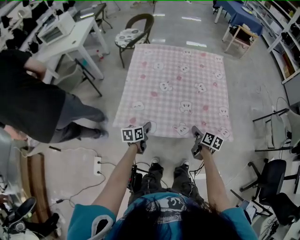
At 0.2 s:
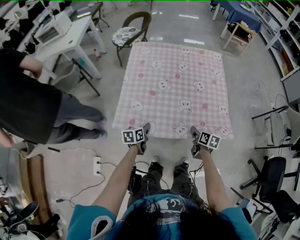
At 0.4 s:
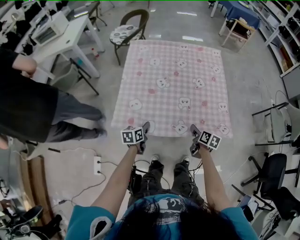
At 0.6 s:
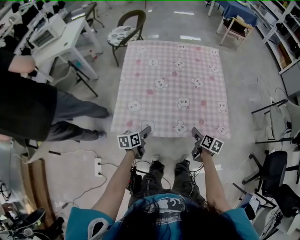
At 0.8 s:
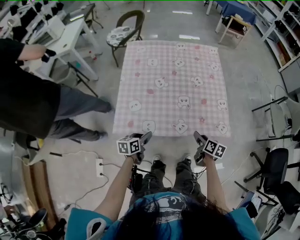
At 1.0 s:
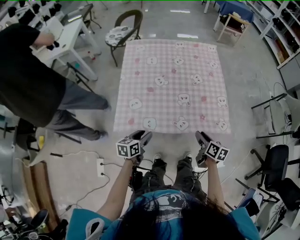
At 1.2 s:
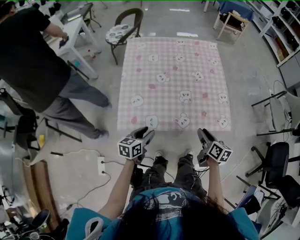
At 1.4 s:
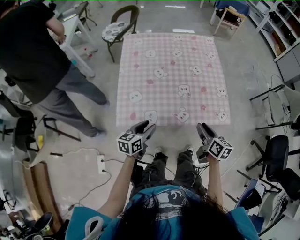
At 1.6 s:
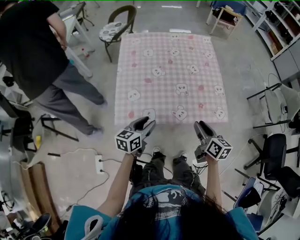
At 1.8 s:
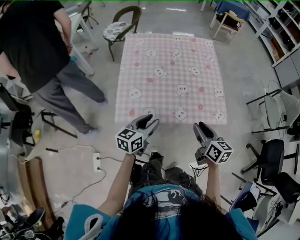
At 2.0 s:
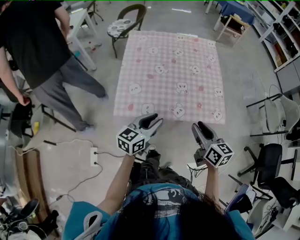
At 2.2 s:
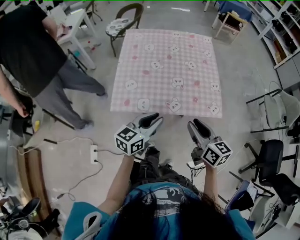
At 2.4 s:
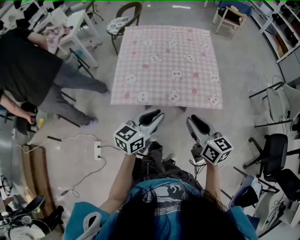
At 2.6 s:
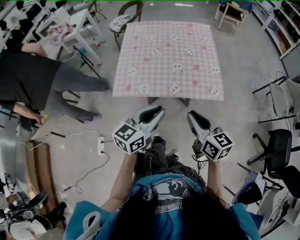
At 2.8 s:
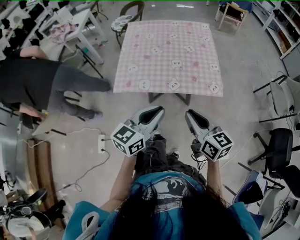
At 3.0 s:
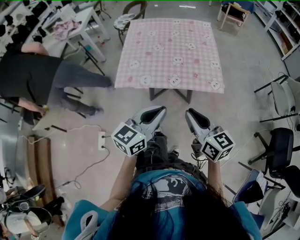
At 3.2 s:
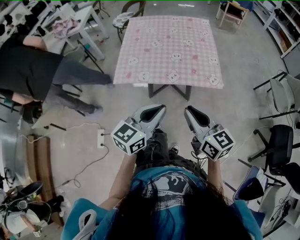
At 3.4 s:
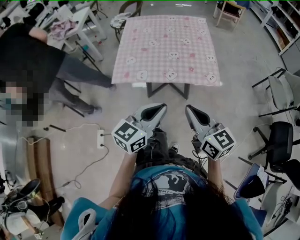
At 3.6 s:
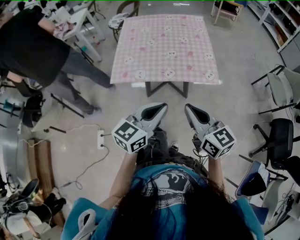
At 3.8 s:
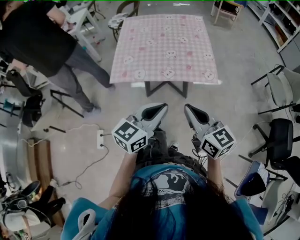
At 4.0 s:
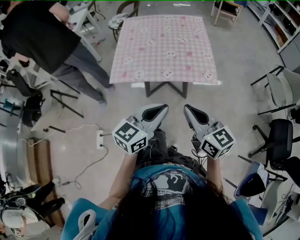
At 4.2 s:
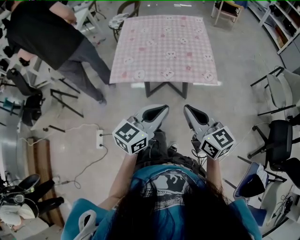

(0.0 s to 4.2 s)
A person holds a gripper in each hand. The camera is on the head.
0.0 s - 1.4 s: The two grippers go about 10 cm upward and backward. The left gripper turns by some 20 degrees, and opens its fingers.
1.4 s - 2.8 s: The left gripper heads upward, backward and to the right, covering approximately 30 cm, changes its angle by about 20 degrees, and closes; the right gripper is displaced backward and upward by approximately 20 cm, swivels about 30 degrees, and closes.
2.8 s - 4.2 s: The right gripper goes some 5 cm backward; the left gripper moves backward and to the right, roughly 10 cm.

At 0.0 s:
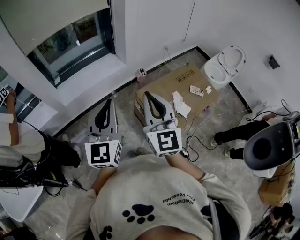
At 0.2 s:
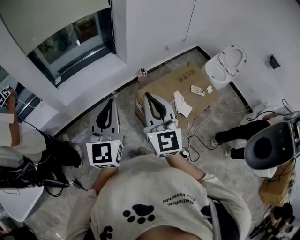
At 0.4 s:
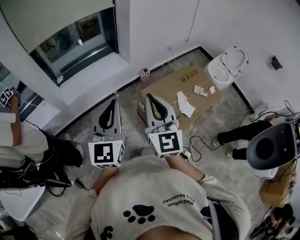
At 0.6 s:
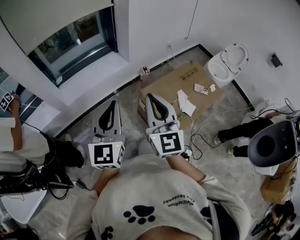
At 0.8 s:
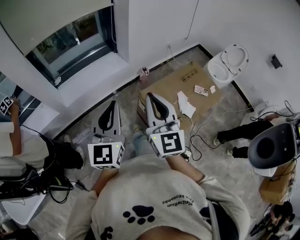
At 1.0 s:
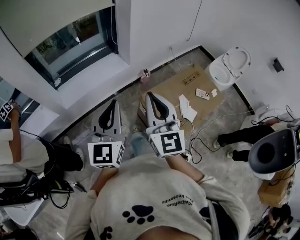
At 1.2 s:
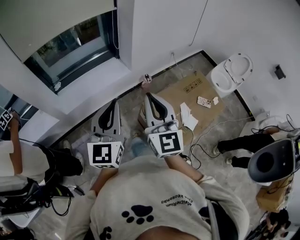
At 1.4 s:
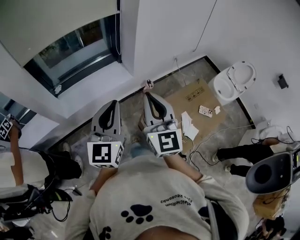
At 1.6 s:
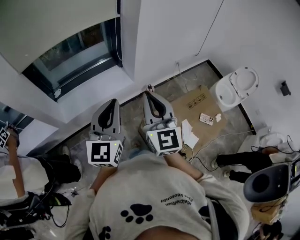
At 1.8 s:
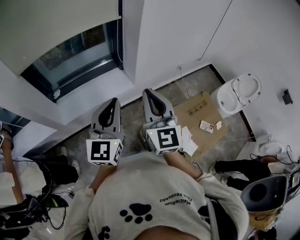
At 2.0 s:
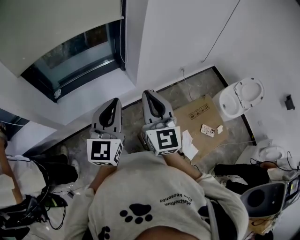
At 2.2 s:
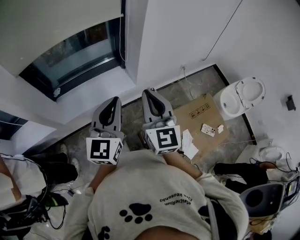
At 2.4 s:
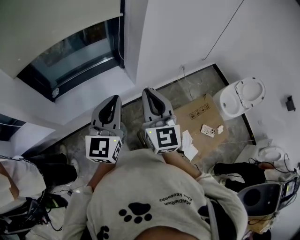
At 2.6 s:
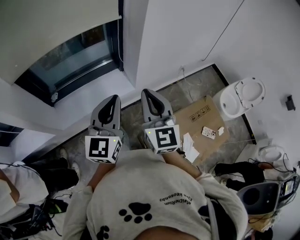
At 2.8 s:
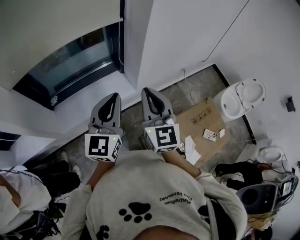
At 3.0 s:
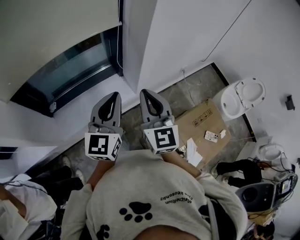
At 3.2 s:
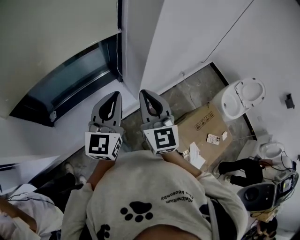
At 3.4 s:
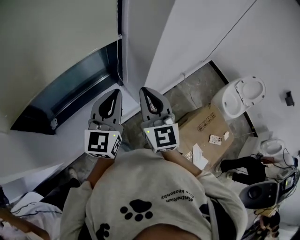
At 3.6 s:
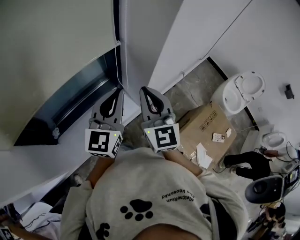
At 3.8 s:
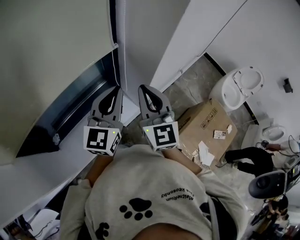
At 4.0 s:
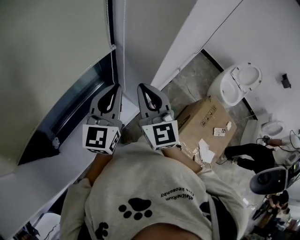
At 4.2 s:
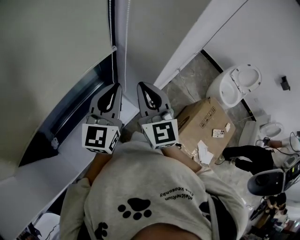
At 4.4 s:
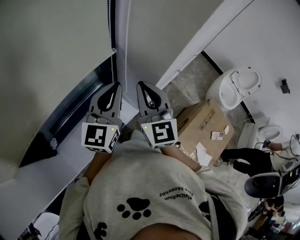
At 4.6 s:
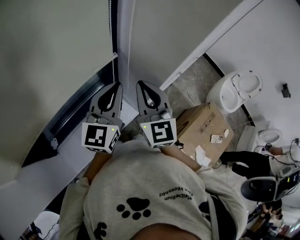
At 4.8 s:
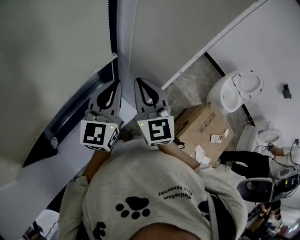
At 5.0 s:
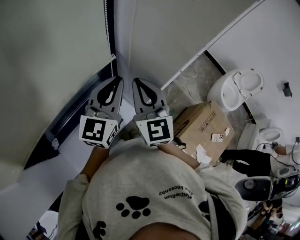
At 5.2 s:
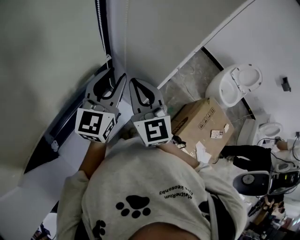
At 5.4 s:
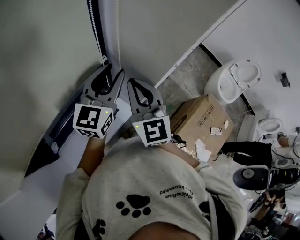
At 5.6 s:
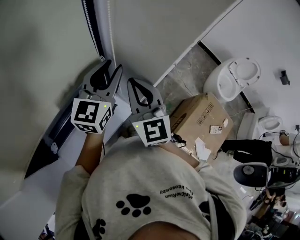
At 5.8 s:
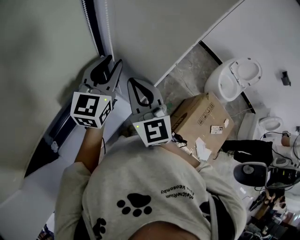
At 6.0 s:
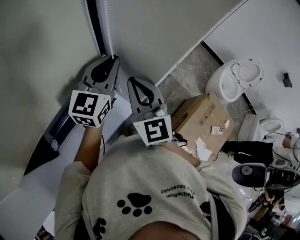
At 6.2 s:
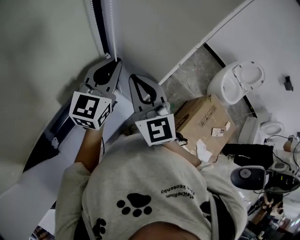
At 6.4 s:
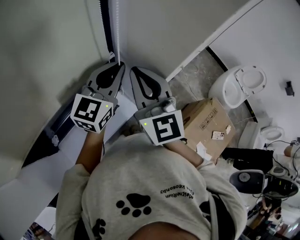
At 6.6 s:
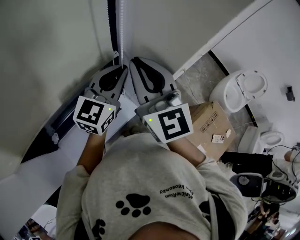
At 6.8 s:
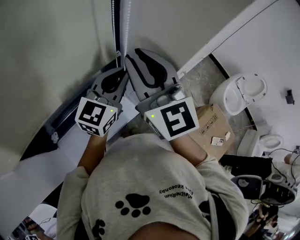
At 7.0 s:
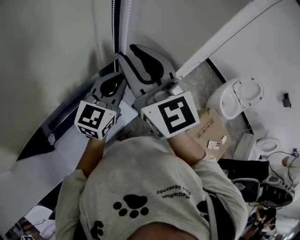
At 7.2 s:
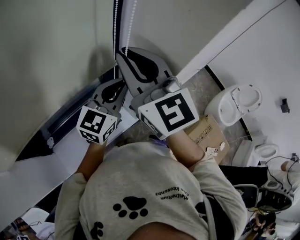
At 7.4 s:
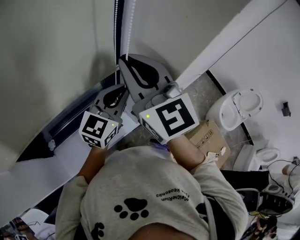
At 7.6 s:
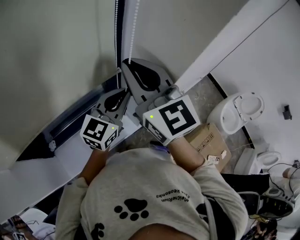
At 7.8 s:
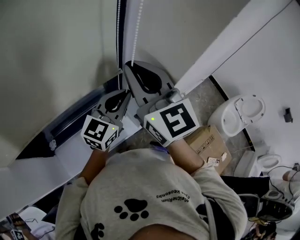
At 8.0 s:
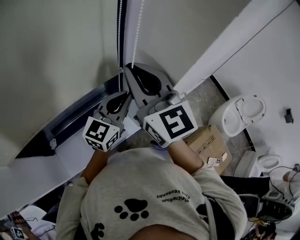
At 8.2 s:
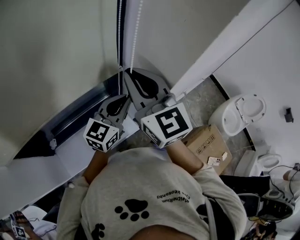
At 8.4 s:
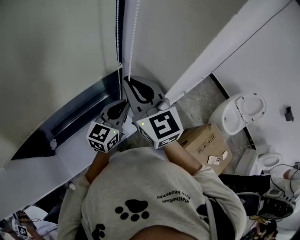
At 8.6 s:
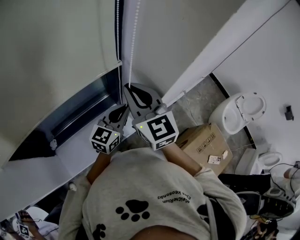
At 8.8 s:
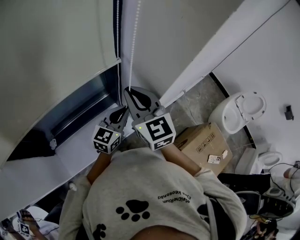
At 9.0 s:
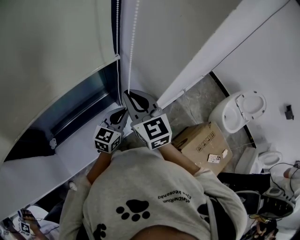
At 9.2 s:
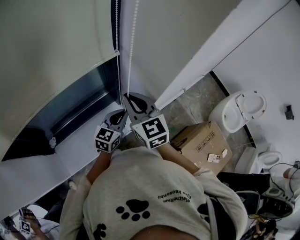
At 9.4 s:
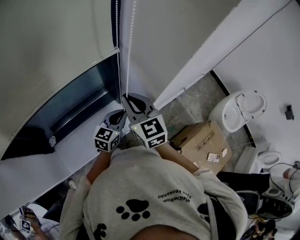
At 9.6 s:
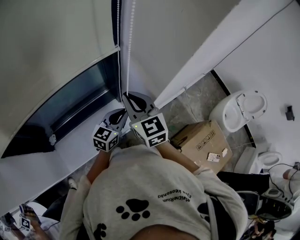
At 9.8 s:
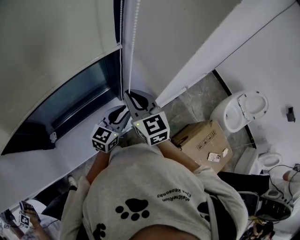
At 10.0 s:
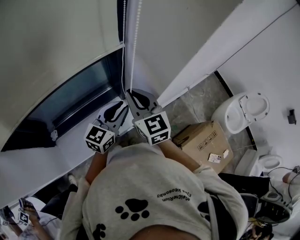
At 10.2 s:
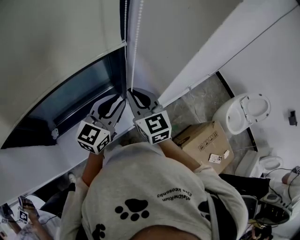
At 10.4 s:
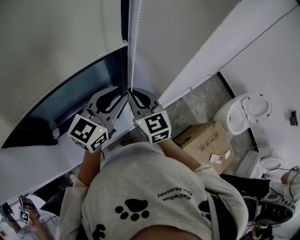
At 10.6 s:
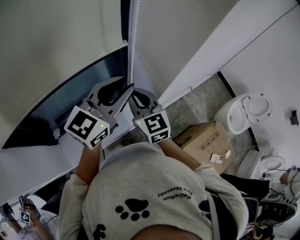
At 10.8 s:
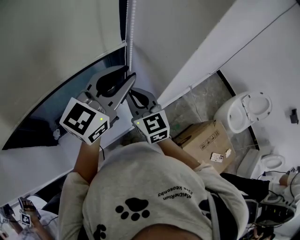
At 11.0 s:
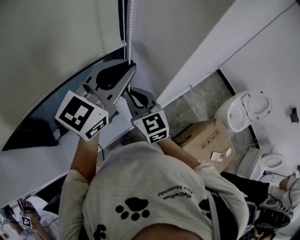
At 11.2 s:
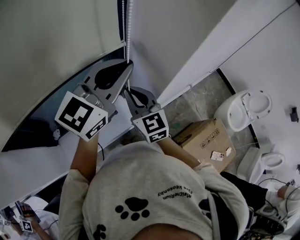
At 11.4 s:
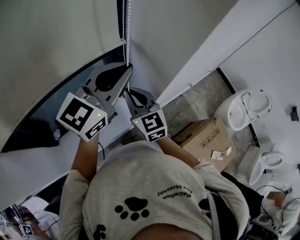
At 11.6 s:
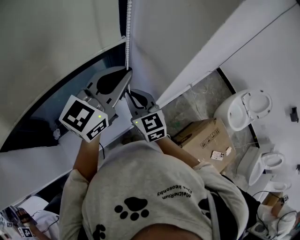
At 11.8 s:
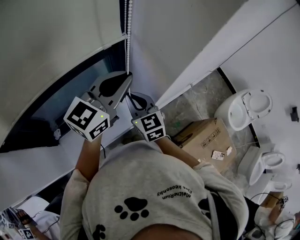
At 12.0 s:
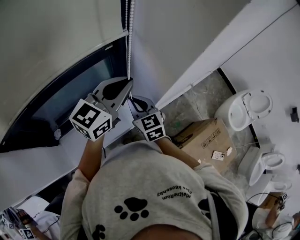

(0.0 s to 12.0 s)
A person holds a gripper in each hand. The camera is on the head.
0.0 s - 1.6 s: The grippers both shift forward by approximately 25 cm.
1.6 s - 3.0 s: The two grippers go approximately 20 cm forward.
3.0 s - 4.4 s: Both grippers move forward, roughly 25 cm.
4.4 s - 6.0 s: The left gripper moves forward, about 10 cm, and opens, then closes again.
6.0 s - 7.6 s: The right gripper travels upward by some 15 cm, swivels about 20 degrees, and opens and closes again, while the left gripper is displaced backward by roughly 5 cm.
7.6 s - 9.0 s: The grippers both shift downward by roughly 15 cm.
9.0 s - 10.4 s: The left gripper shifts roughly 15 cm upward, and opens its fingers.
10.4 s - 12.0 s: The right gripper goes approximately 10 cm downward, while the left gripper moves approximately 10 cm upward and comes back, and closes up.

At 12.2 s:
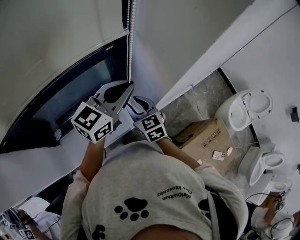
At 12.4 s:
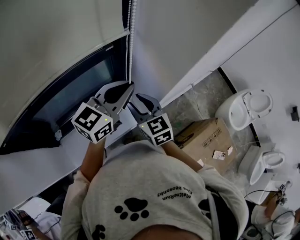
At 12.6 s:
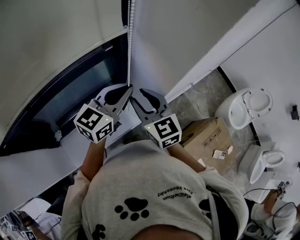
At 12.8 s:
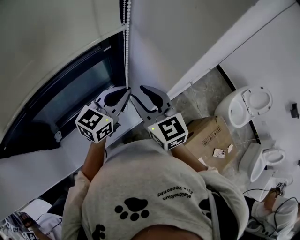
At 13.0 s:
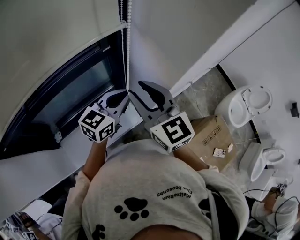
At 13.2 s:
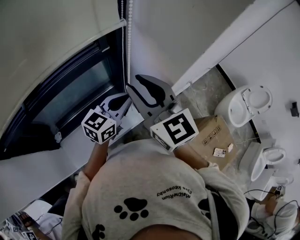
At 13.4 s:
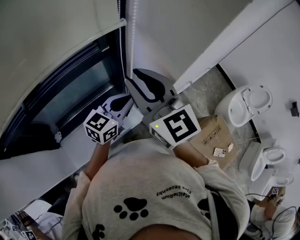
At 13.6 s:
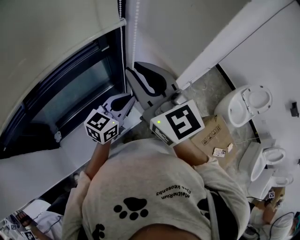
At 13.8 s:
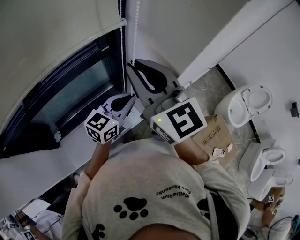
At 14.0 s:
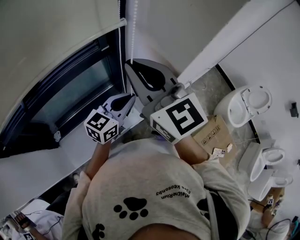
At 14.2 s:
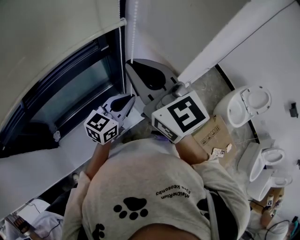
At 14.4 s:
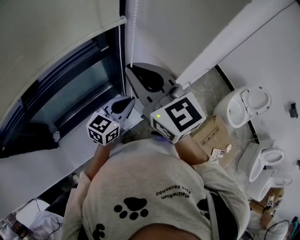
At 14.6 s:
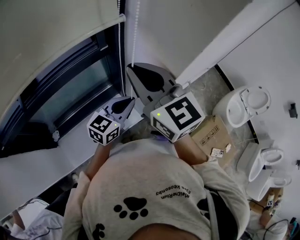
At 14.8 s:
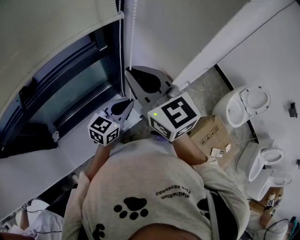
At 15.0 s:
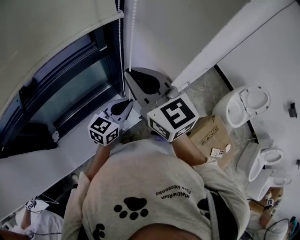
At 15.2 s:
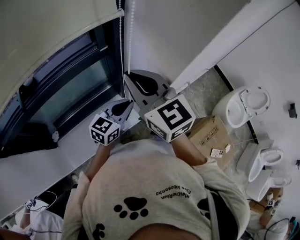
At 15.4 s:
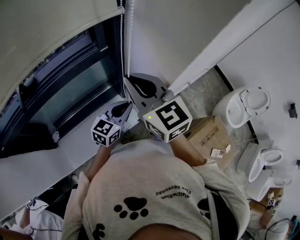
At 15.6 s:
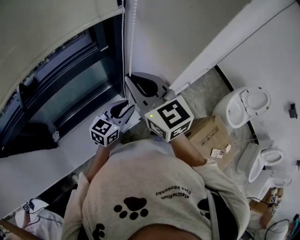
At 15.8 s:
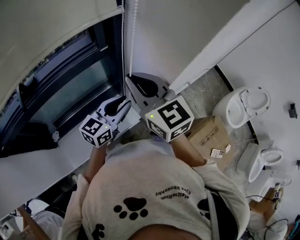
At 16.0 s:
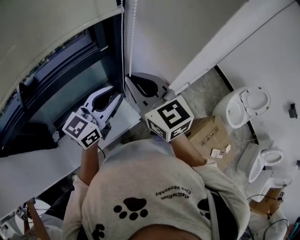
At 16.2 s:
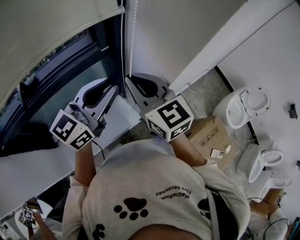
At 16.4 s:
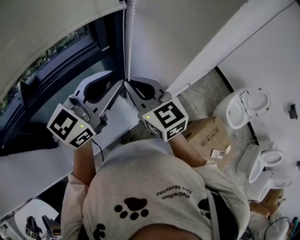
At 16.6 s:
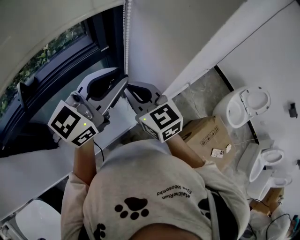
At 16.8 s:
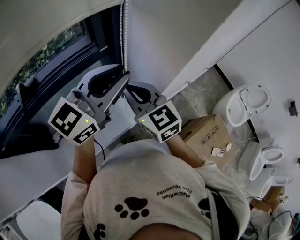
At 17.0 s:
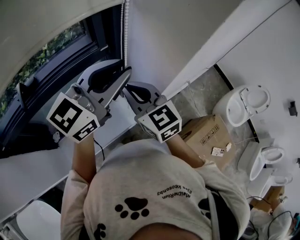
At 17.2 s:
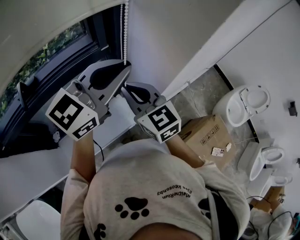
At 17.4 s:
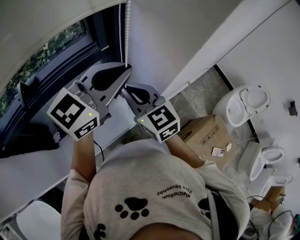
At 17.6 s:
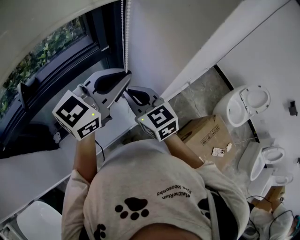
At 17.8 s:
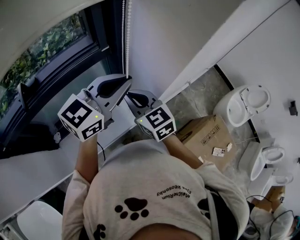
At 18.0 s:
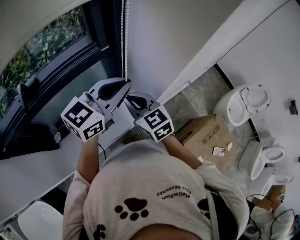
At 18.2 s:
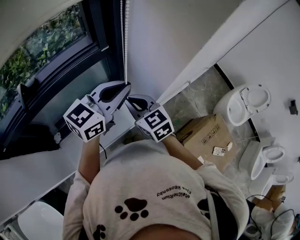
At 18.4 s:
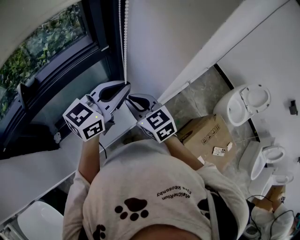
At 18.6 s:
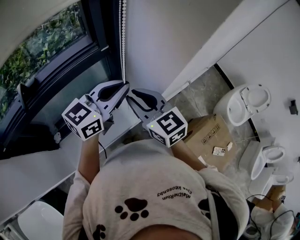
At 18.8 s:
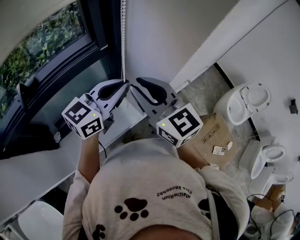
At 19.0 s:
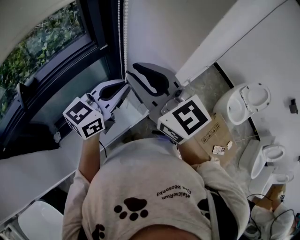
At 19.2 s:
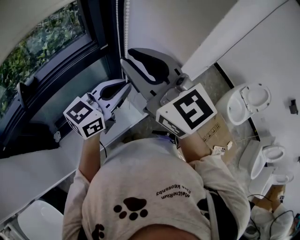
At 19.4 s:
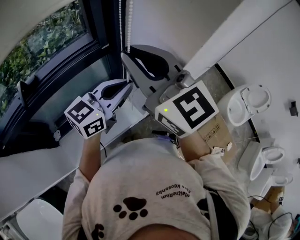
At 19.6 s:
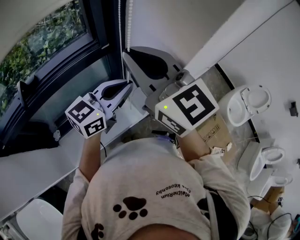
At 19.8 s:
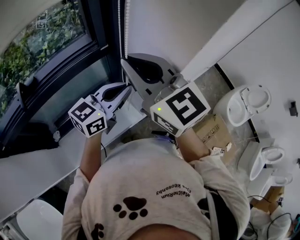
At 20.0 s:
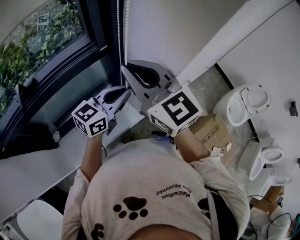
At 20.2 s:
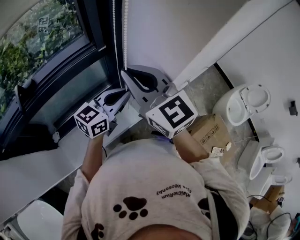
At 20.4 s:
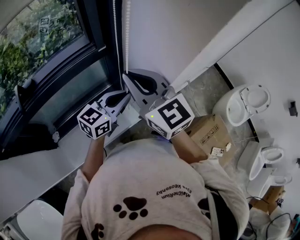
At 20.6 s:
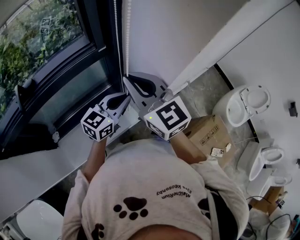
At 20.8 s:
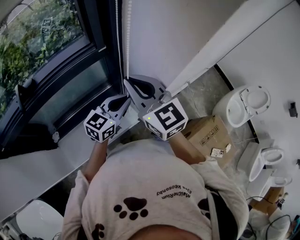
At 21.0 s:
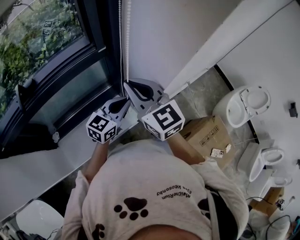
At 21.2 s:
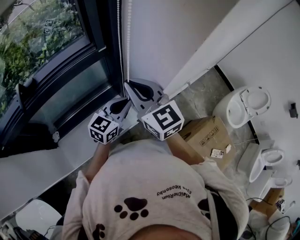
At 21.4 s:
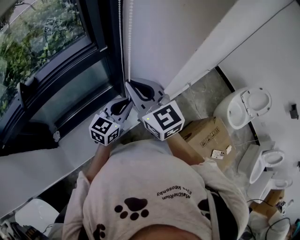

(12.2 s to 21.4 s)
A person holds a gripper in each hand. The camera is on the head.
12.2 s - 13.8 s: The right gripper moves upward, roughly 25 cm, turns by some 30 degrees, and closes. The left gripper heads downward, covering roughly 10 cm.
13.8 s - 15.2 s: The two grippers go approximately 5 cm downward.
15.2 s - 16.8 s: The right gripper travels downward by some 5 cm. Meanwhile the left gripper goes about 25 cm upward, and swivels approximately 20 degrees.
16.8 s - 18.4 s: The two grippers go roughly 10 cm downward.
18.4 s - 19.8 s: The right gripper shifts approximately 20 cm upward, and rotates about 20 degrees.
19.8 s - 21.4 s: The grippers both shift downward by about 10 cm.
